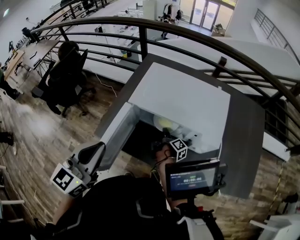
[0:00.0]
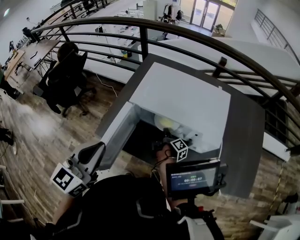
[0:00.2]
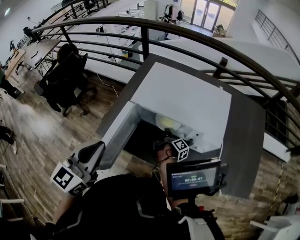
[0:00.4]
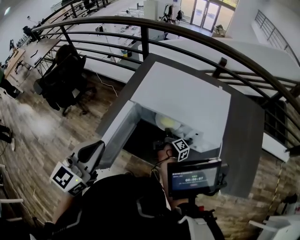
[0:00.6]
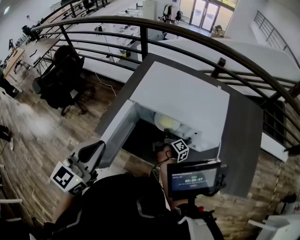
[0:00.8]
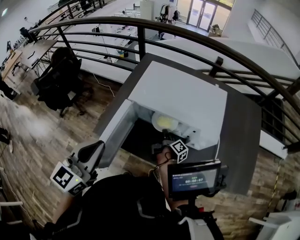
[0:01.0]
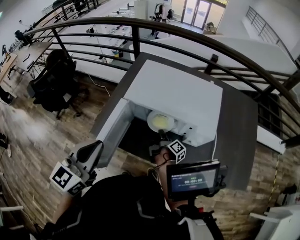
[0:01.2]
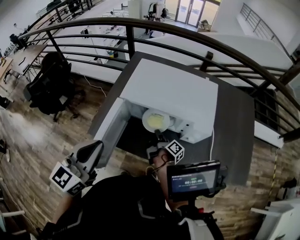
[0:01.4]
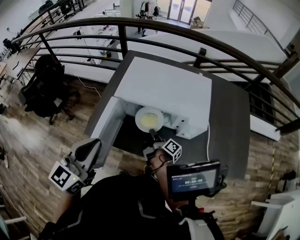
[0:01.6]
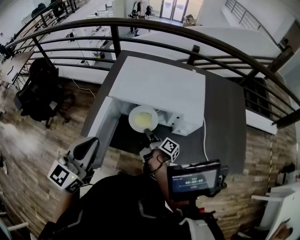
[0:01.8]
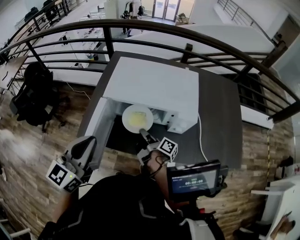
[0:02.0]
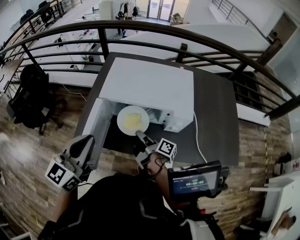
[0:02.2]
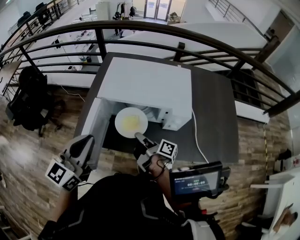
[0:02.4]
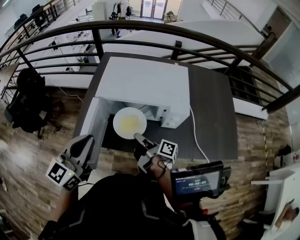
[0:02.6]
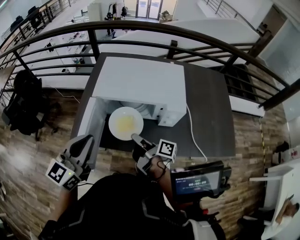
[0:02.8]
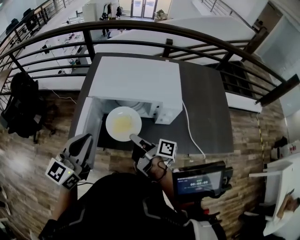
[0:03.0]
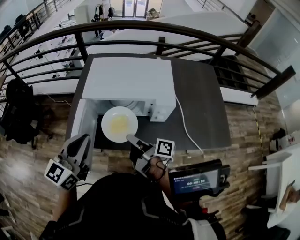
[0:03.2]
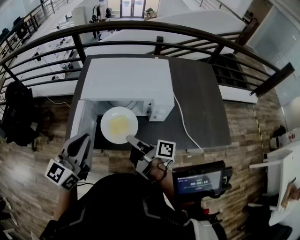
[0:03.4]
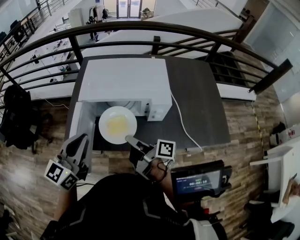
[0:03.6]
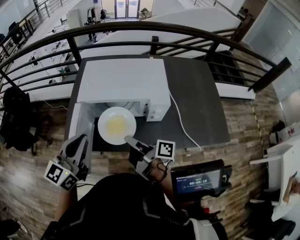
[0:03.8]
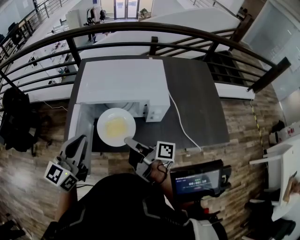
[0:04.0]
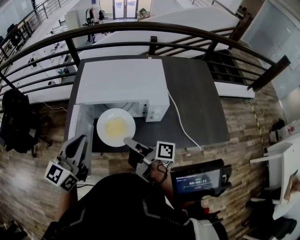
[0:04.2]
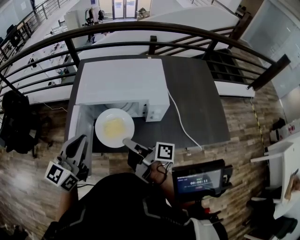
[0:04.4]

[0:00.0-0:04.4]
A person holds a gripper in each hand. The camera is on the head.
0:00.0 to 0:01.4: The right gripper travels backward by approximately 5 cm.
0:01.4 to 0:03.0: The right gripper shifts approximately 15 cm upward and backward, and swivels approximately 20 degrees.
0:03.0 to 0:04.4: The right gripper shifts by roughly 5 cm.

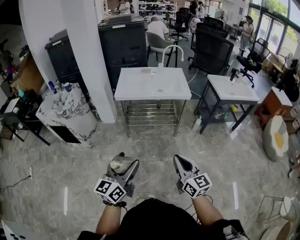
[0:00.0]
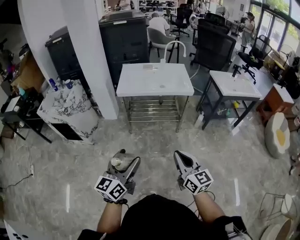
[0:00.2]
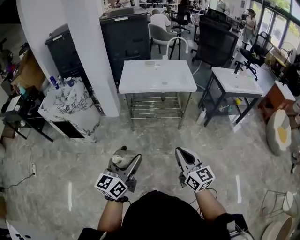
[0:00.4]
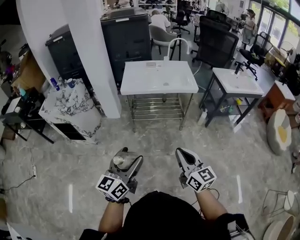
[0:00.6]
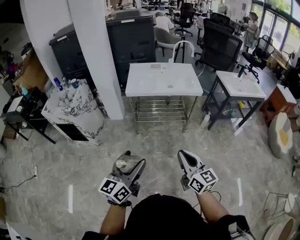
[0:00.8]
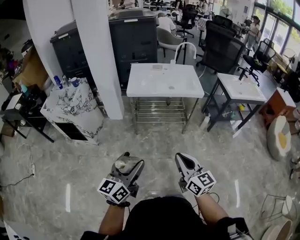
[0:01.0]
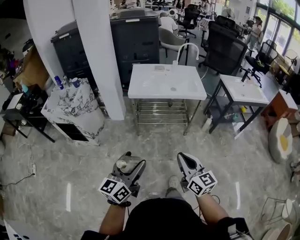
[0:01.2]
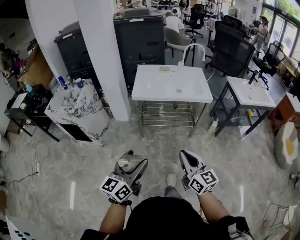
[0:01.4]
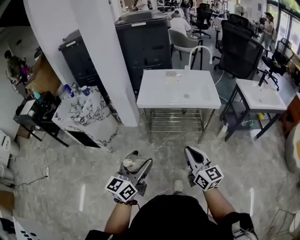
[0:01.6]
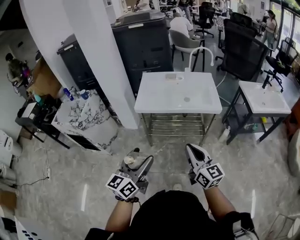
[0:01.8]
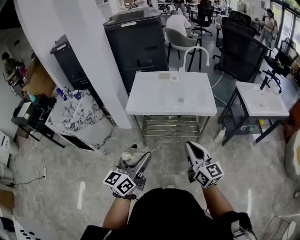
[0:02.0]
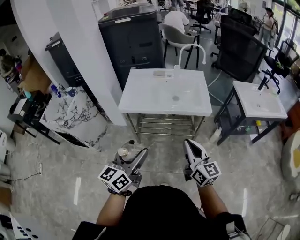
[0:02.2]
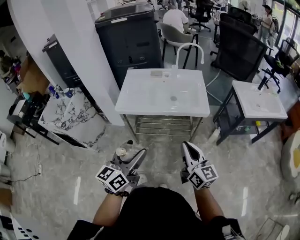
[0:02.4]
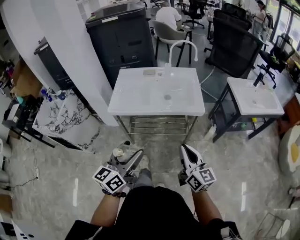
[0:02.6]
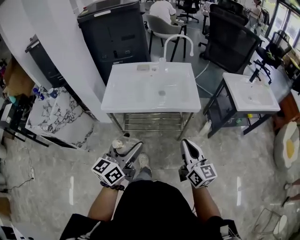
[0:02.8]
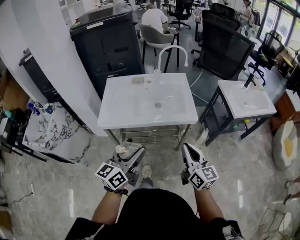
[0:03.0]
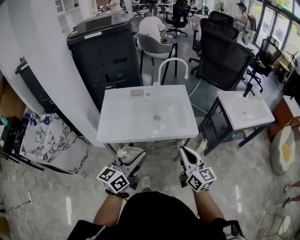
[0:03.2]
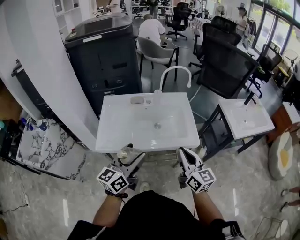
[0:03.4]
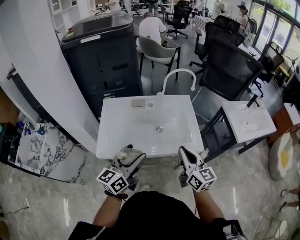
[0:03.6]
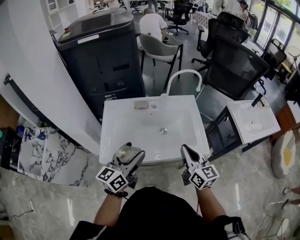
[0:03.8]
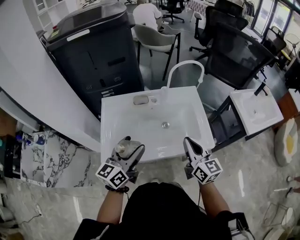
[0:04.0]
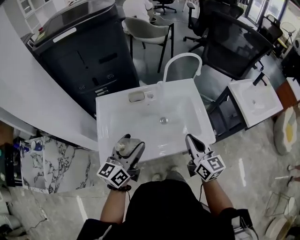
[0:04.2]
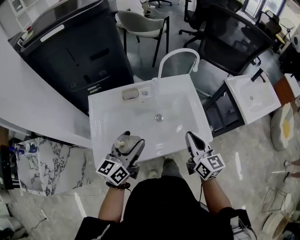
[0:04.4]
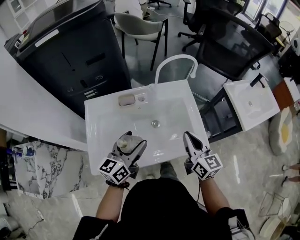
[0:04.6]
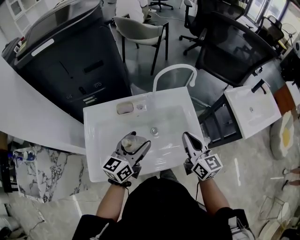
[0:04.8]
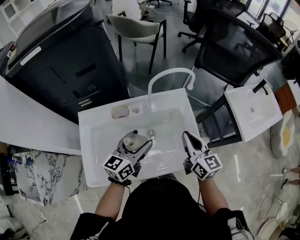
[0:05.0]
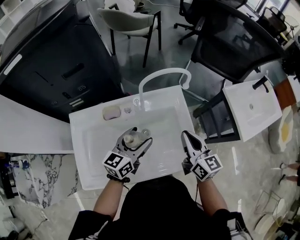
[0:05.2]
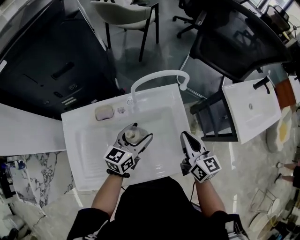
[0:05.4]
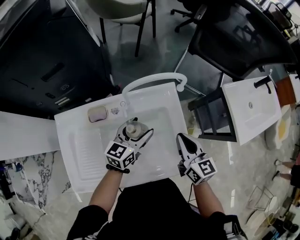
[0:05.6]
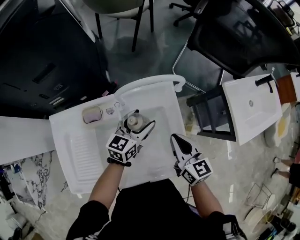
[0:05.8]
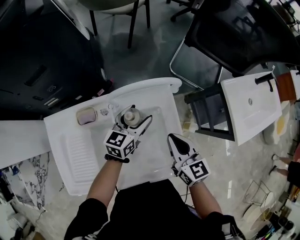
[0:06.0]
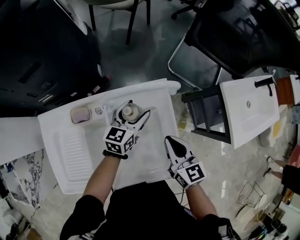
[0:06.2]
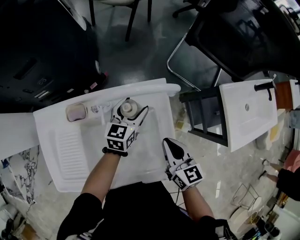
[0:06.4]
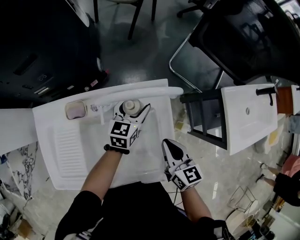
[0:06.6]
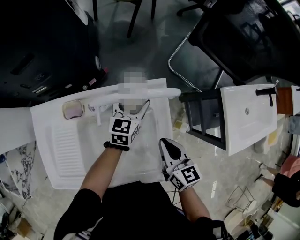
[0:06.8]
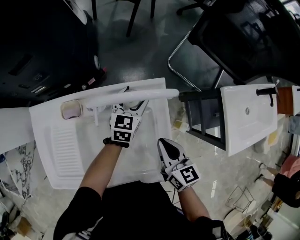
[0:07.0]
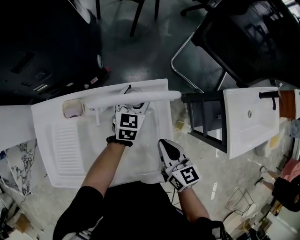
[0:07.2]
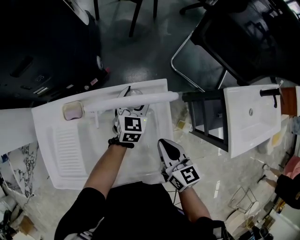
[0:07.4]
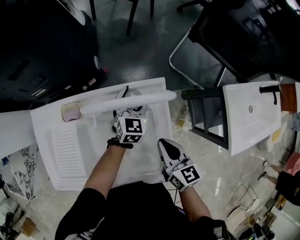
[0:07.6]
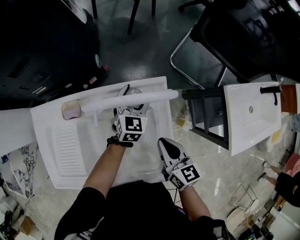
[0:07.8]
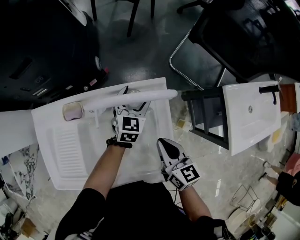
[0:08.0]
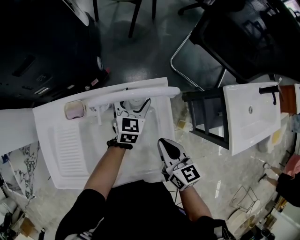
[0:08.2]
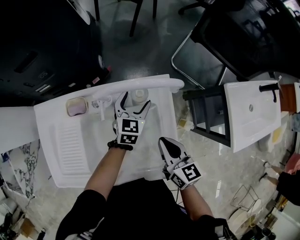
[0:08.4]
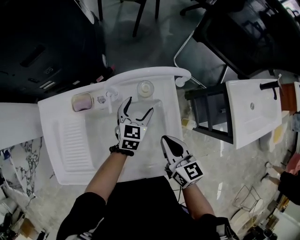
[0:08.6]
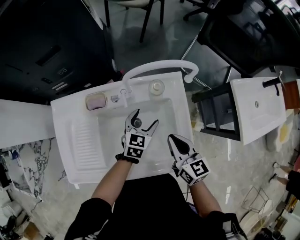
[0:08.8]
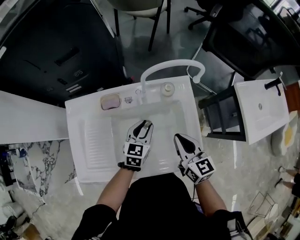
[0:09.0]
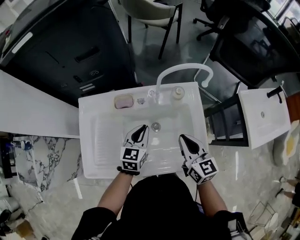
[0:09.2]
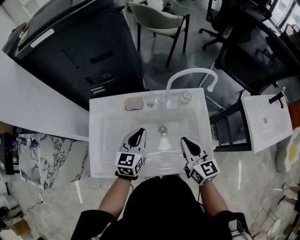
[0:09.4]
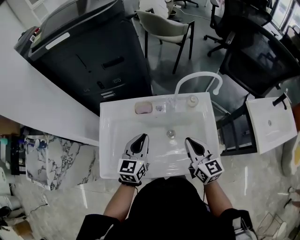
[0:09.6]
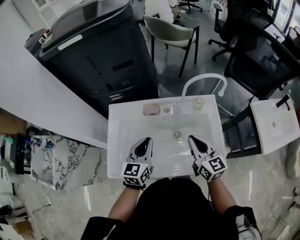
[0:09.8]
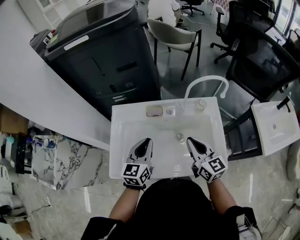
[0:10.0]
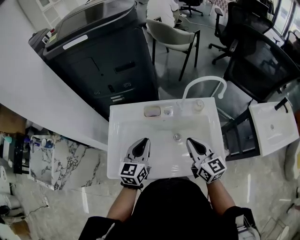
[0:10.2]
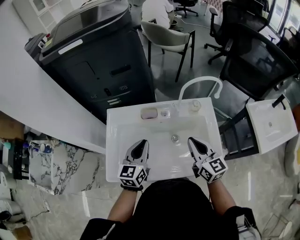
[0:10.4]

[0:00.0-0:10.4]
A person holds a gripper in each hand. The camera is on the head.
0:00.0 to 0:01.4: Both grippers move forward and to the left, approximately 10 cm.
0:01.4 to 0:03.0: The grippers both shift forward and to the right by about 35 cm.
0:03.0 to 0:04.4: The two grippers go some 25 cm forward.
0:04.4 to 0:06.0: The left gripper heads forward, to the right and downward, covering roughly 35 cm, and rotates about 20 degrees, while the right gripper moves forward and downward, about 20 cm.
0:06.0 to 0:07.4: The left gripper shifts some 10 cm forward and downward, and swivels approximately 30 degrees.
0:07.4 to 0:09.0: The left gripper is displaced backward and to the left by about 20 cm, and closes its fingers; the right gripper travels to the left by roughly 5 cm.
0:09.0 to 0:10.4: The right gripper is displaced to the left and upward by roughly 10 cm; the left gripper moves to the left and upward, about 20 cm, and changes its angle by some 20 degrees.

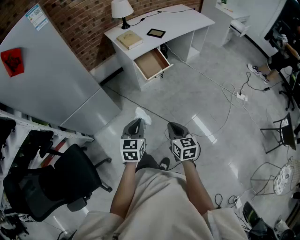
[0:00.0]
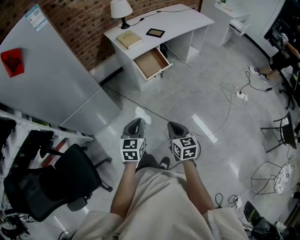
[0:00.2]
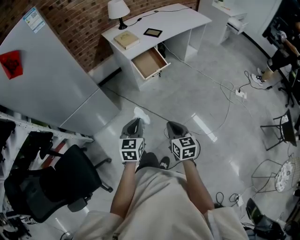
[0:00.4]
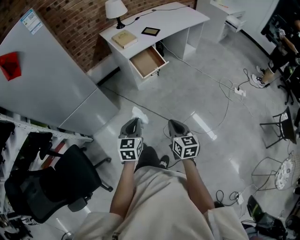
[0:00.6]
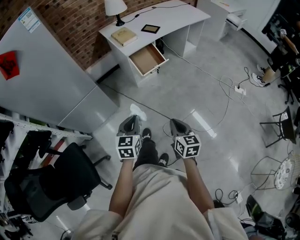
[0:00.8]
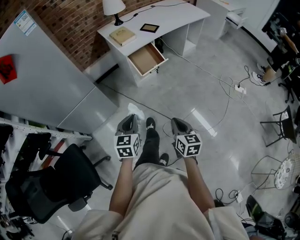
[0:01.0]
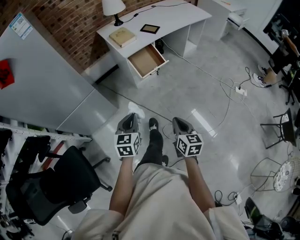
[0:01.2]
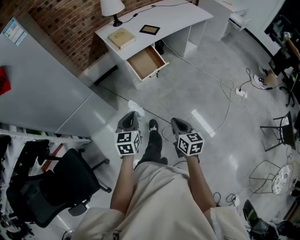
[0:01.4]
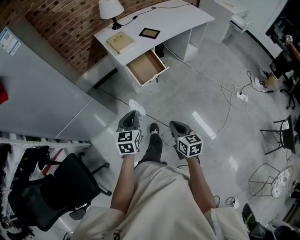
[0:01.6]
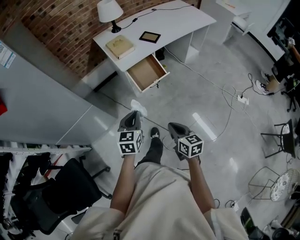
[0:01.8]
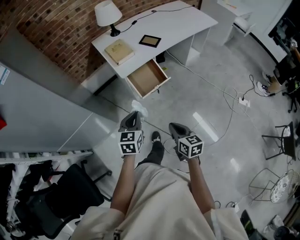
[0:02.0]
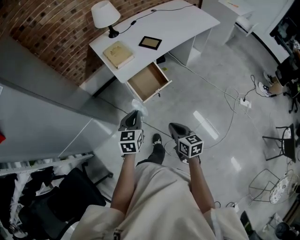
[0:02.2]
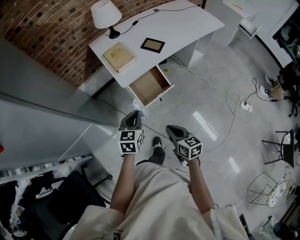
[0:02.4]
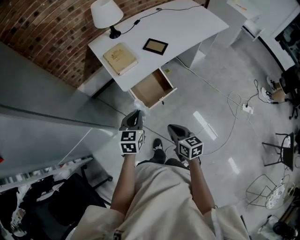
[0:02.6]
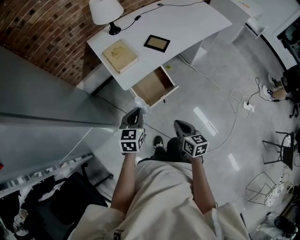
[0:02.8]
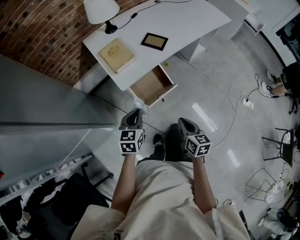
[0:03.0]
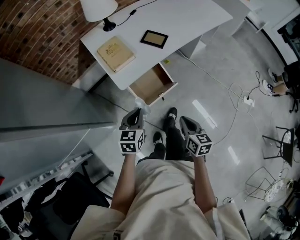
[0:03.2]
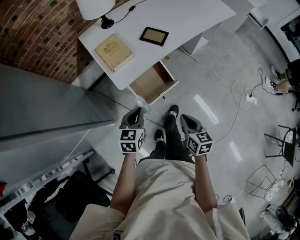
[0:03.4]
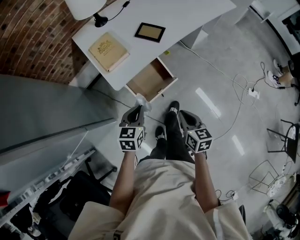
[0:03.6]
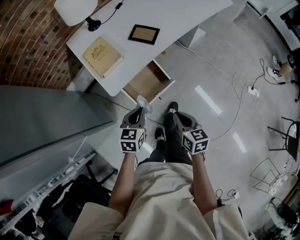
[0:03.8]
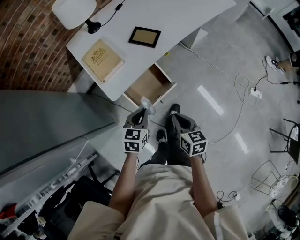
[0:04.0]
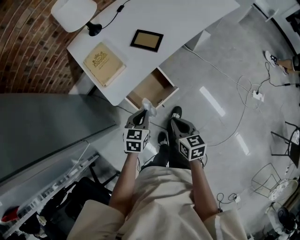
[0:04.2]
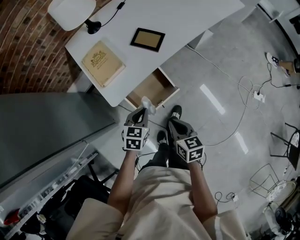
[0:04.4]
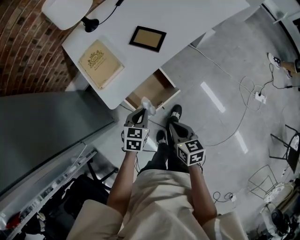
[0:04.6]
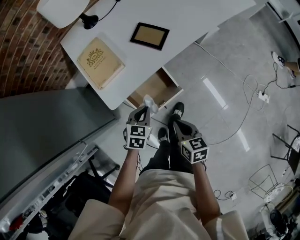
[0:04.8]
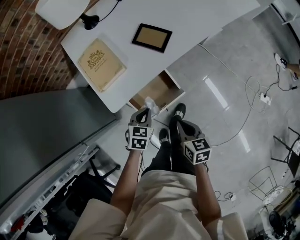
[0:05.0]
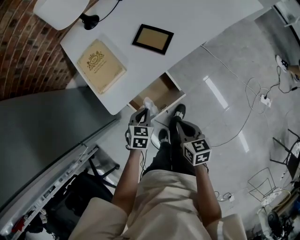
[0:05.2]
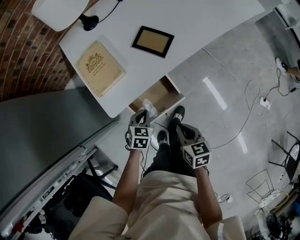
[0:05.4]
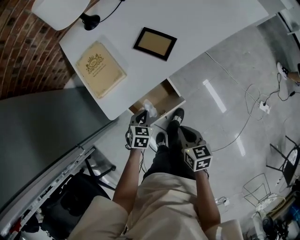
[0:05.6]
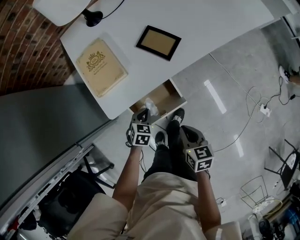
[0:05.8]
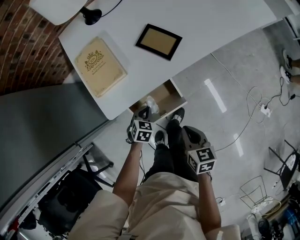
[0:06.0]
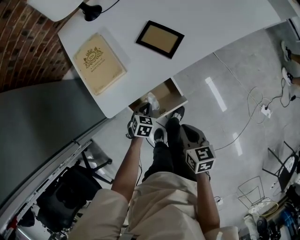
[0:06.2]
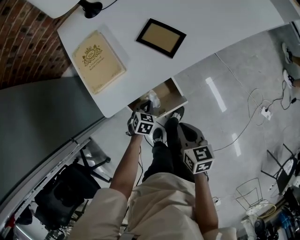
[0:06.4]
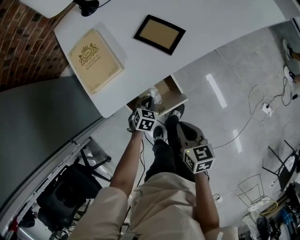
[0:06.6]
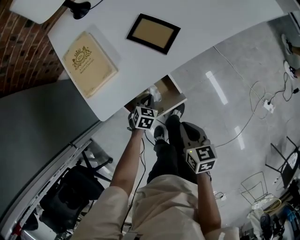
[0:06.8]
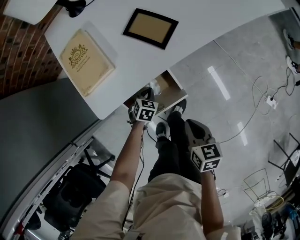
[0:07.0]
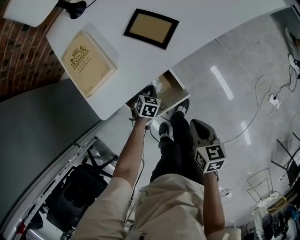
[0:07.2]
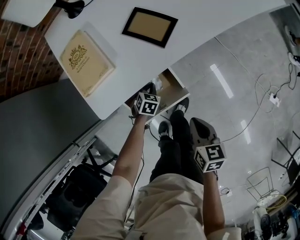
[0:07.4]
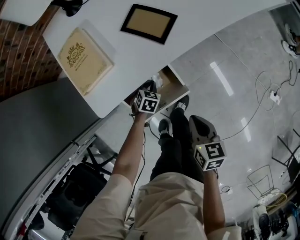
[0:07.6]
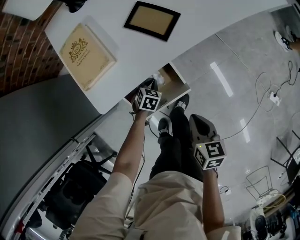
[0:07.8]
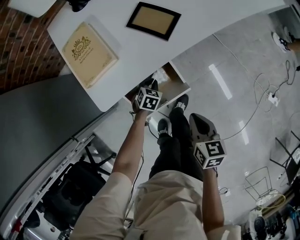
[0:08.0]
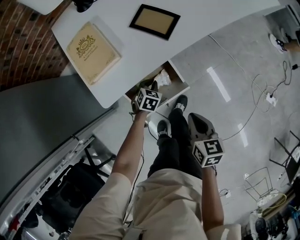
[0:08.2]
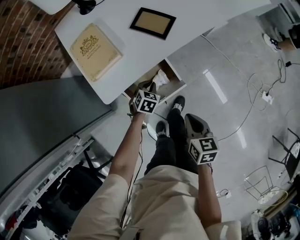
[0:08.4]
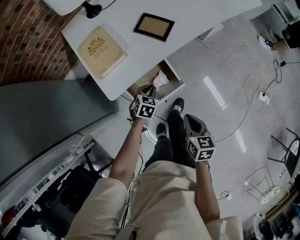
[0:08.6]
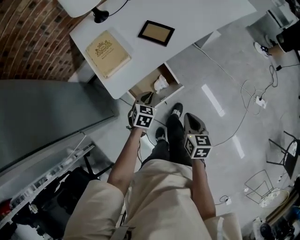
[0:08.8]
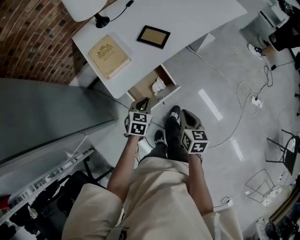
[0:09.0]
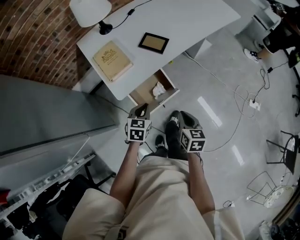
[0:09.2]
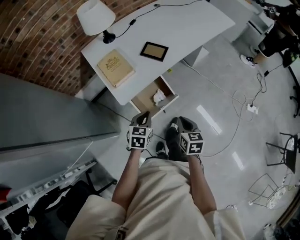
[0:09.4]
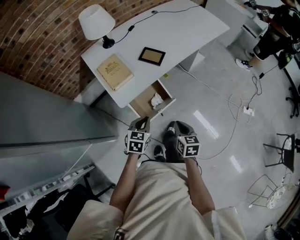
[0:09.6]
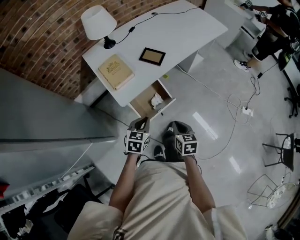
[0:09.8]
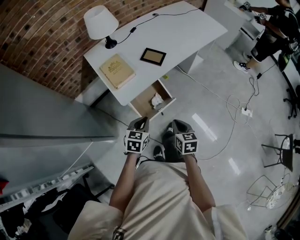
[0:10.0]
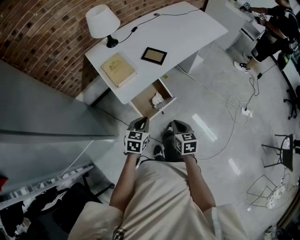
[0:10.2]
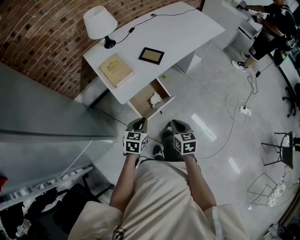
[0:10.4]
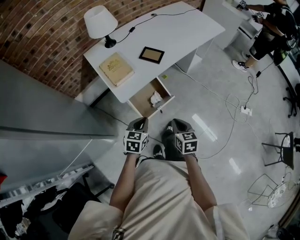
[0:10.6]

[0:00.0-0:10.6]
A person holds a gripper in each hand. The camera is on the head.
0:00.0 to 0:01.6: The right gripper goes some 15 cm forward and to the right. Meanwhile the left gripper travels forward by some 15 cm.
0:01.6 to 0:03.0: The two grippers go about 30 cm forward.
0:03.0 to 0:04.6: The right gripper is displaced forward and downward by about 15 cm. Meanwhile the left gripper travels downward, forward and to the right by roughly 25 cm.
0:04.6 to 0:06.0: The left gripper shifts roughly 15 cm downward, while the right gripper shifts about 5 cm forward.
0:06.0 to 0:07.6: The right gripper moves about 5 cm; the left gripper shifts some 15 cm downward and forward.
0:07.6 to 0:09.0: The right gripper shifts roughly 15 cm upward and backward. The left gripper goes approximately 30 cm upward and backward.
0:09.0 to 0:10.6: The grippers both shift backward and upward by some 15 cm.
